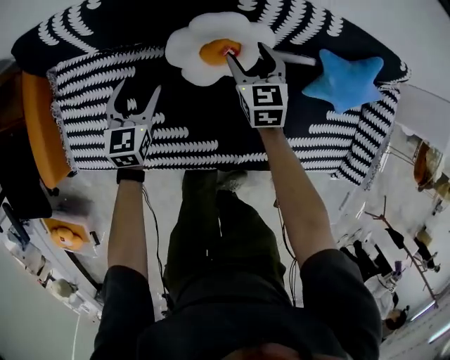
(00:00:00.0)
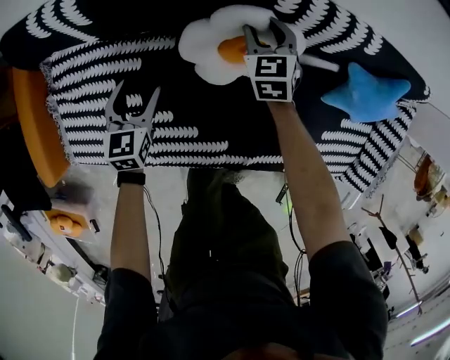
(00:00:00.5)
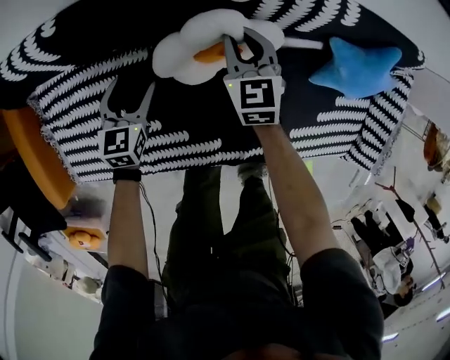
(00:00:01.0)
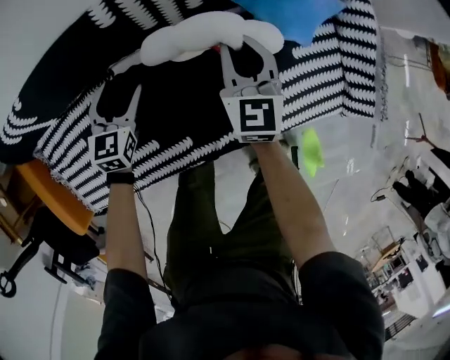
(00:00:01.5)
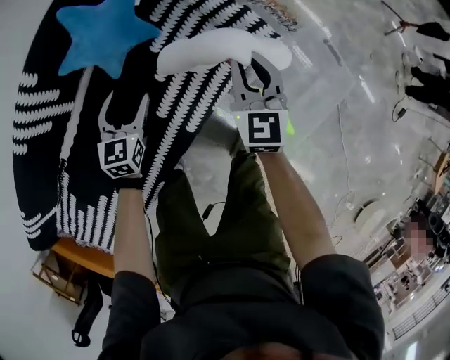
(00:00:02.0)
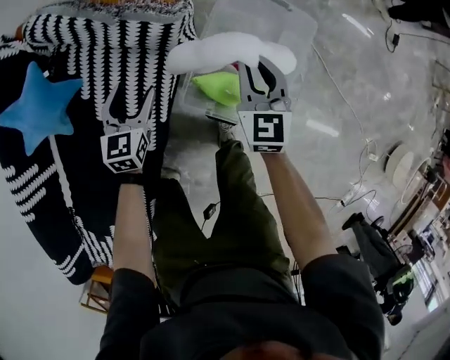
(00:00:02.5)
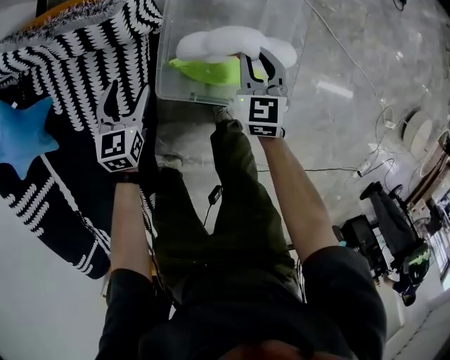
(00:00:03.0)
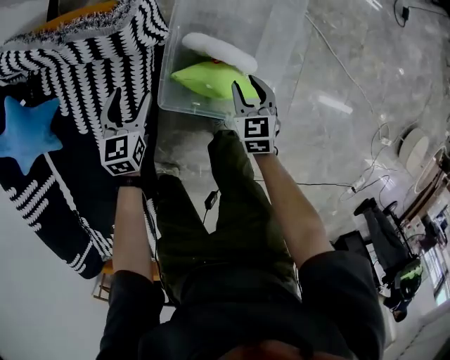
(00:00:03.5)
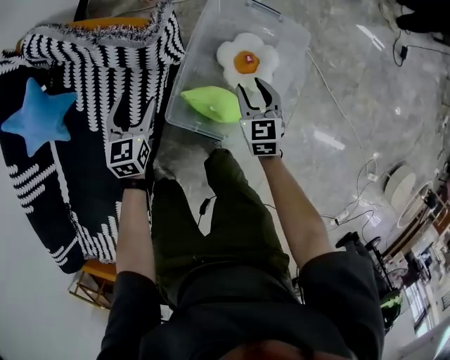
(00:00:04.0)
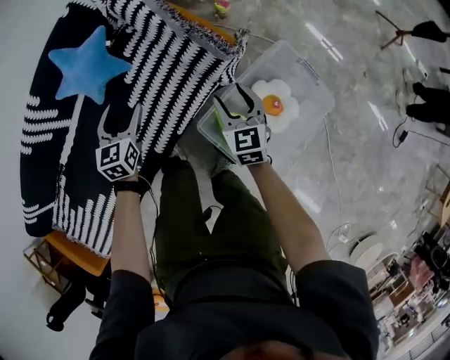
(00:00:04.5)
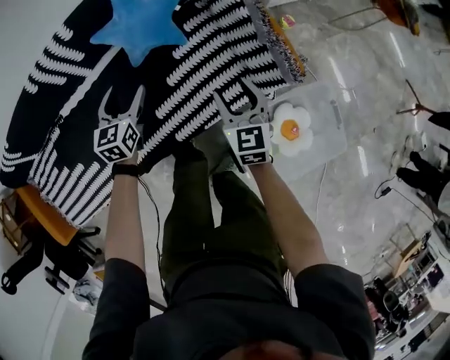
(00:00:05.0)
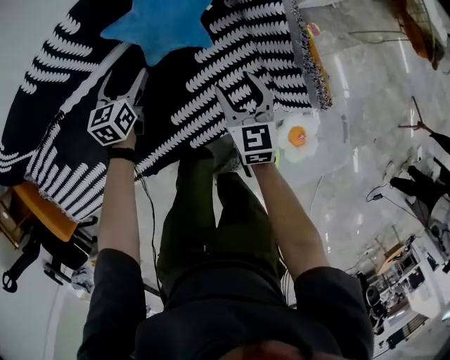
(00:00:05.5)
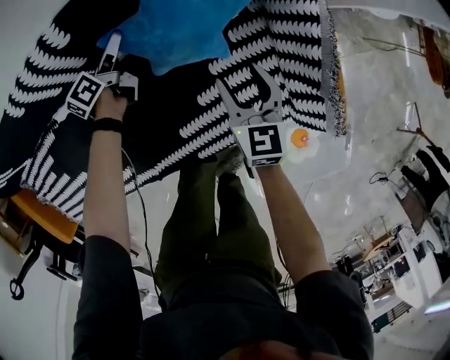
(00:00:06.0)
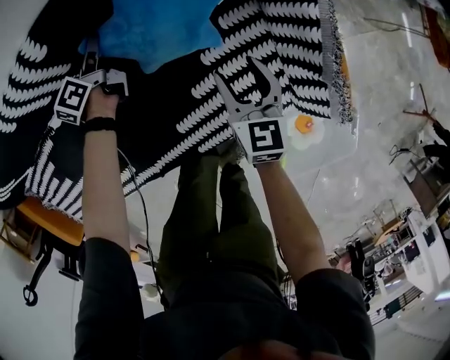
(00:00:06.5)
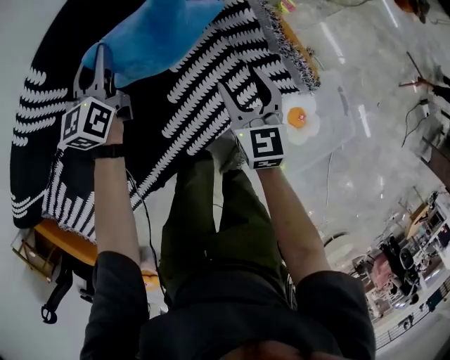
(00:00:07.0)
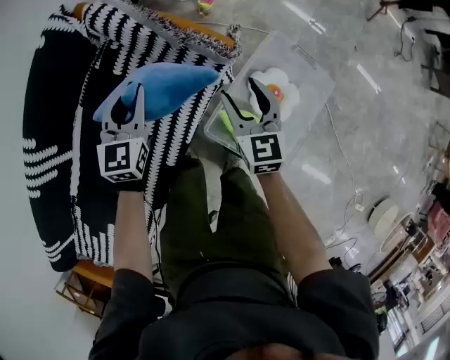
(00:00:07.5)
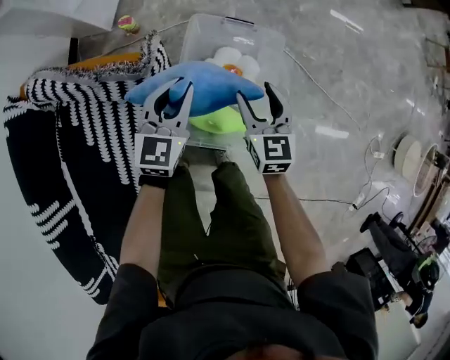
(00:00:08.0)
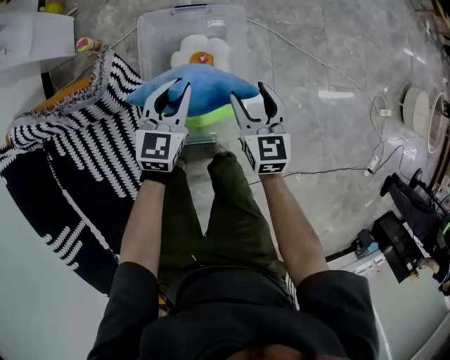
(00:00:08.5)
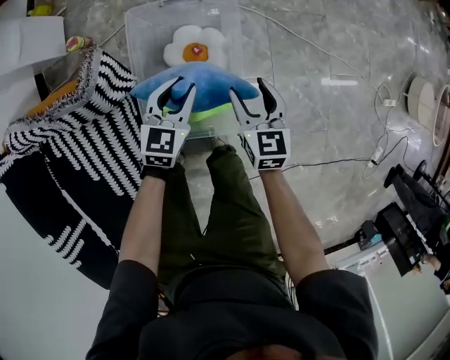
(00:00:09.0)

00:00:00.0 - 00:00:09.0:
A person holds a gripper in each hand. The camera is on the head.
00:00:00.0 - 00:00:02.0: The two grippers travel together, approximately 60 cm. The left gripper turns by roughly 50 degrees. Meanwhile the right gripper rotates approximately 60 degrees, and closes.
00:00:02.0 - 00:00:04.5: The right gripper reaches some 25 cm downward, then returns, and opens up. The left gripper goes downward and returns, approximately 15 cm each way.
00:00:04.5 - 00:00:07.0: Both grippers travel together forward and to the left, some 30 cm. The left gripper swivels approximately 30 degrees, and closes its fingers.
00:00:07.0 - 00:00:09.0: Both grippers are carried approximately 70 cm. The right gripper turns by about 60 degrees. Meanwhile the left gripper swivels approximately 90 degrees.

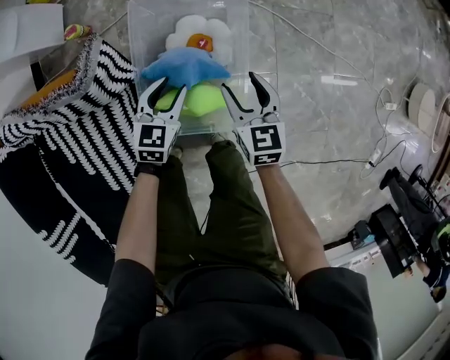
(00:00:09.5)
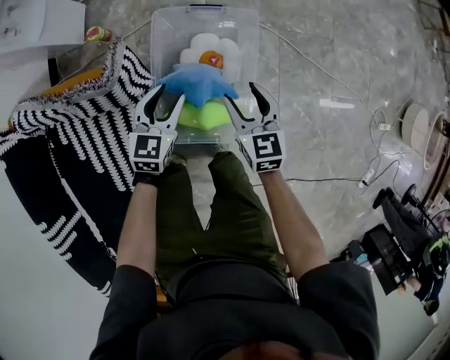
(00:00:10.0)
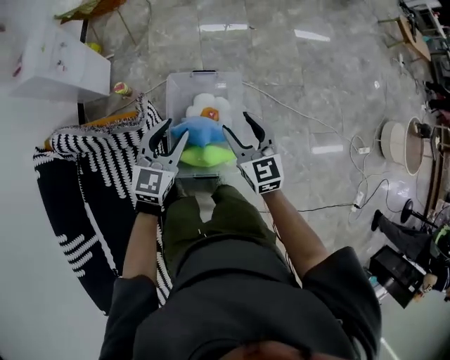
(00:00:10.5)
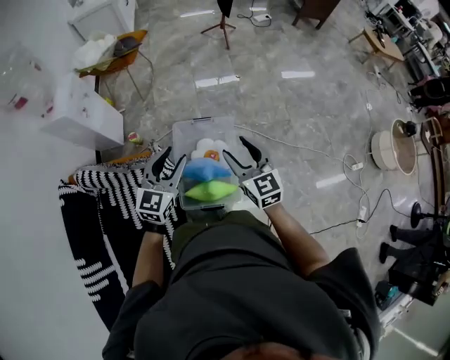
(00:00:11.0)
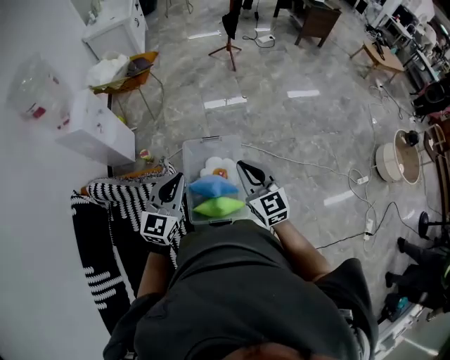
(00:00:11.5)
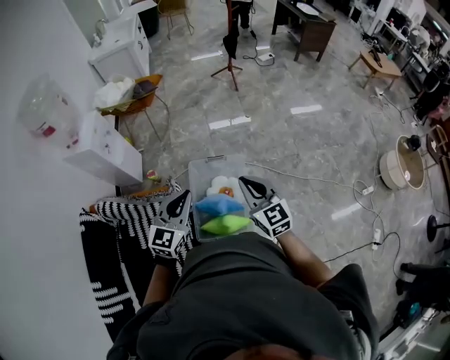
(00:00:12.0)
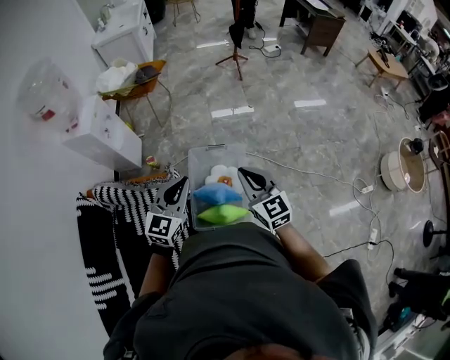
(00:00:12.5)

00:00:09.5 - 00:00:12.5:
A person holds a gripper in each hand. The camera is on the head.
00:00:09.5 - 00:00:11.0: Both grippers travel together upward, roughly 50 cm. The right gripper swivels some 30 degrees. The left gripper changes its angle by approximately 30 degrees.
00:00:11.0 - 00:00:12.5: Both grippers move upward, roughly 5 cm. The left gripper closes. The right gripper closes up.

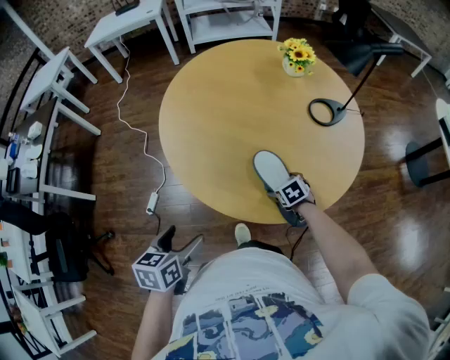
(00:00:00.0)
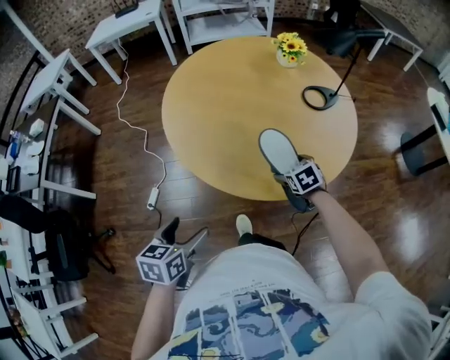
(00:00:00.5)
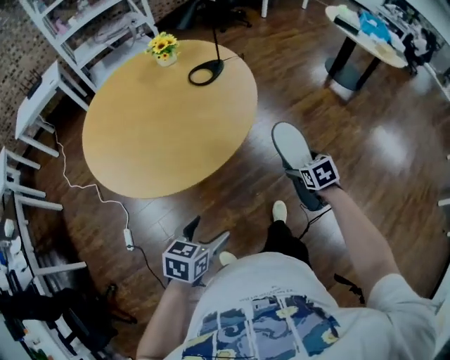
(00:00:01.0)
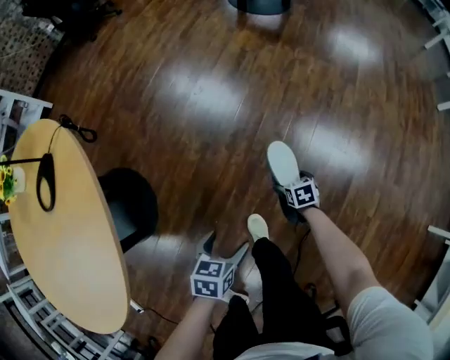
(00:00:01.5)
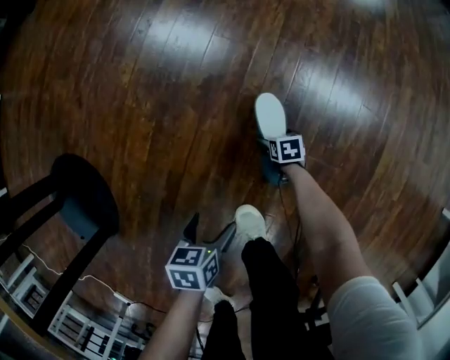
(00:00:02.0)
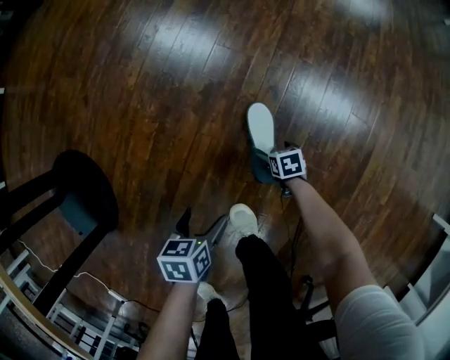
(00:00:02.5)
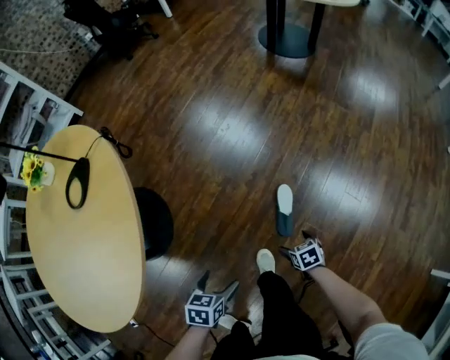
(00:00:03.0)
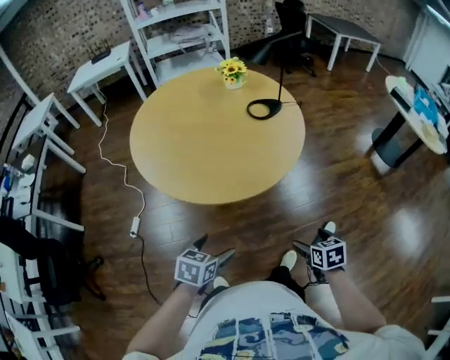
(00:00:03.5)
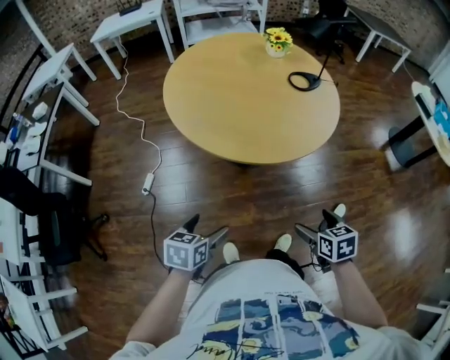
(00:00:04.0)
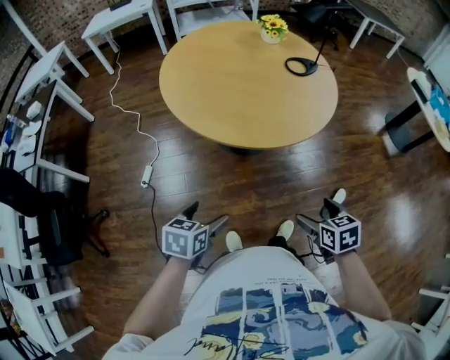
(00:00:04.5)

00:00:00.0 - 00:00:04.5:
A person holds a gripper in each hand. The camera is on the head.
00:00:00.0 - 00:00:02.0: Both grippers are carried roughly 1 m. The right gripper twists some 80 degrees clockwise, seen from behind; the left gripper swivels some 70 degrees.
00:00:02.0 - 00:00:04.5: The pair of grippers is taken some 90 cm. The right gripper is displaced upward by some 1 m, and rotates around the line of its fingers by roughly 60 degrees, counterclockwise from behind, while the left gripper turns by approximately 50 degrees.

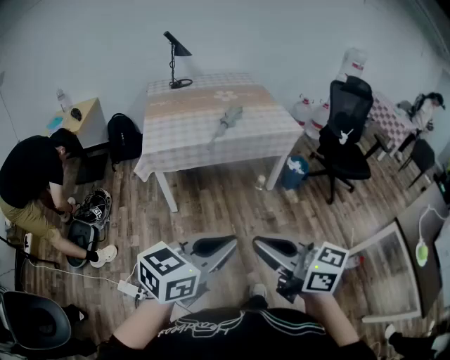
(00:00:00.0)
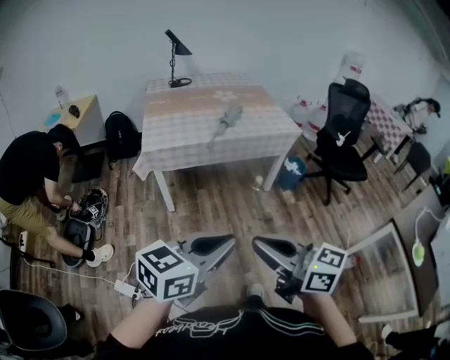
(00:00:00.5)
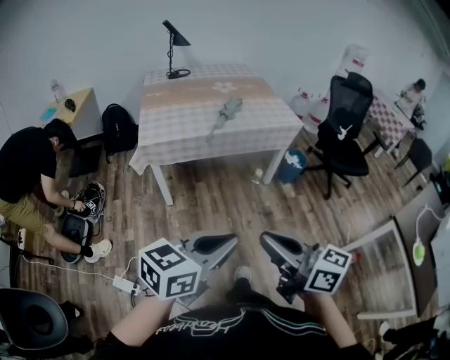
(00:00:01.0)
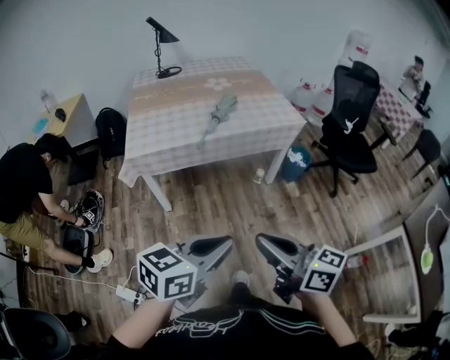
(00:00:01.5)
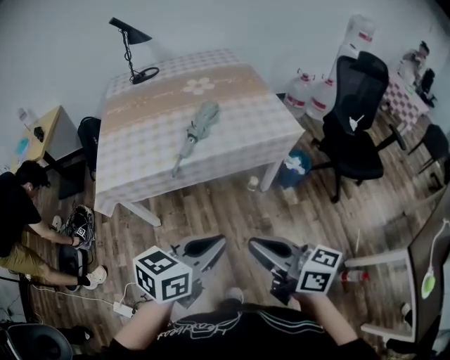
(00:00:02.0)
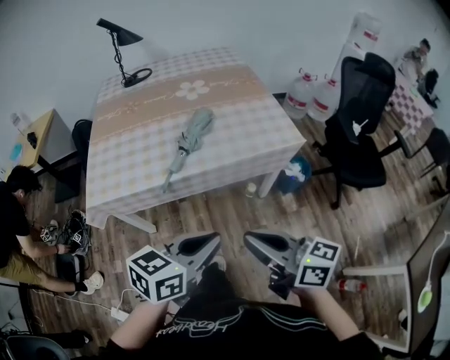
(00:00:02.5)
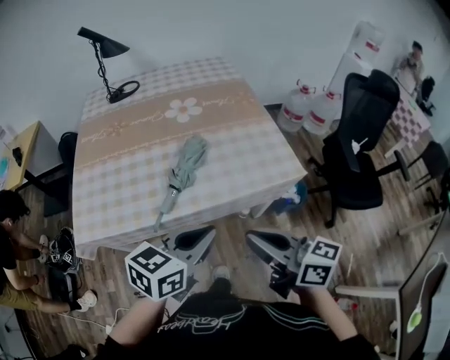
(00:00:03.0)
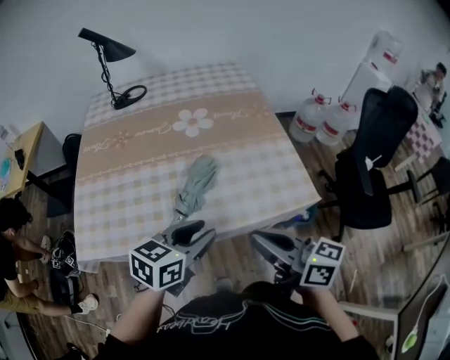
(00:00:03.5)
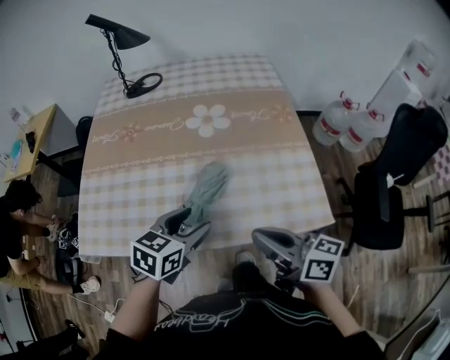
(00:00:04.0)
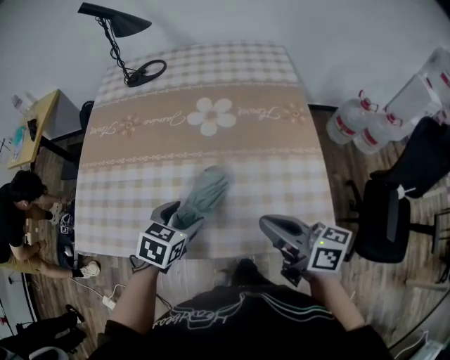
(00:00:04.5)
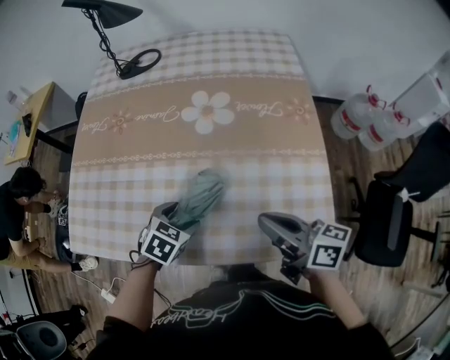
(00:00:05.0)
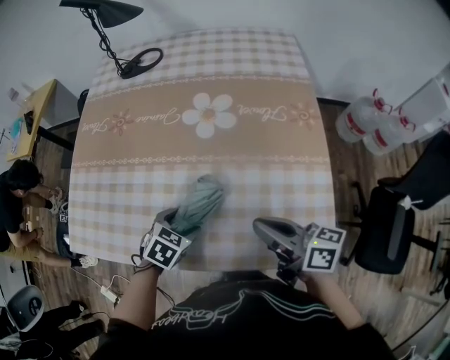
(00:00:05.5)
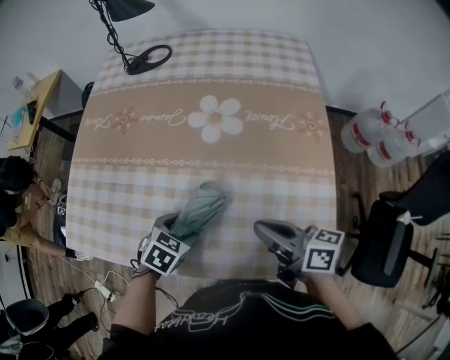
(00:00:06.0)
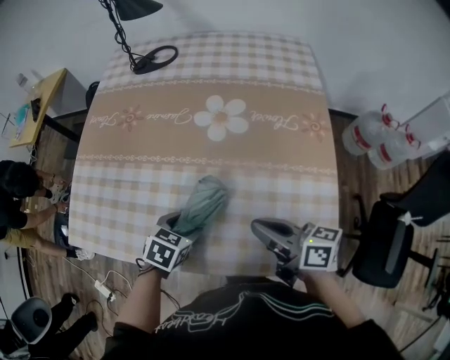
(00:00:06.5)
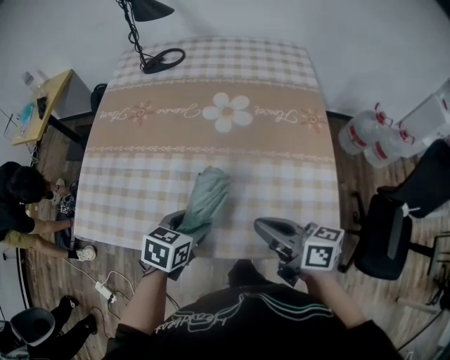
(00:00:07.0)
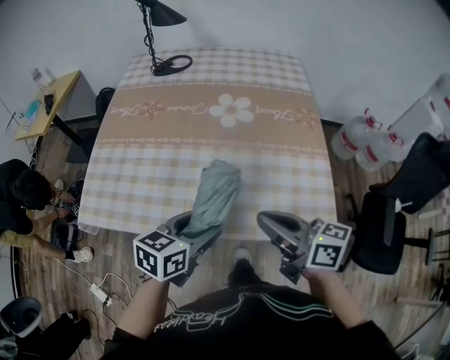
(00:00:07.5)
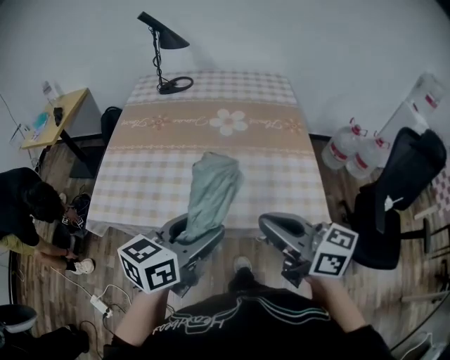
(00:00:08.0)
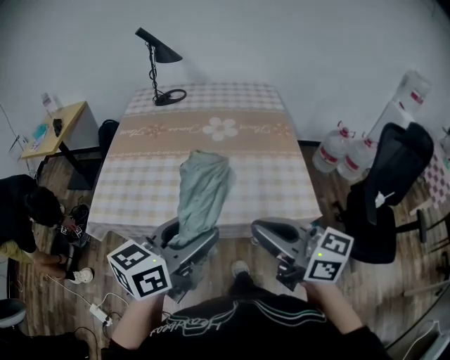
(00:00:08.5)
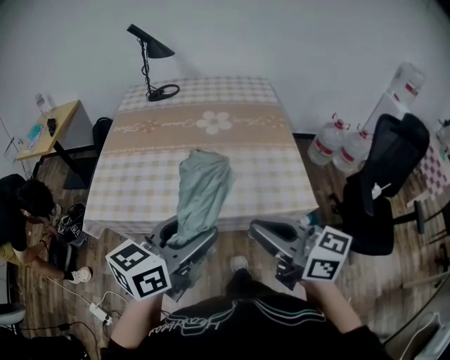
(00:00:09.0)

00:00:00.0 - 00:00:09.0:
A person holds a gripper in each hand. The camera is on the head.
00:00:00.0 - 00:00:02.0: The grippers both shift forward by about 35 cm.
00:00:02.0 - 00:00:04.5: The pair of grippers is taken forward, roughly 50 cm. The left gripper angles its fingers downward, by some 30 degrees, and opens its fingers.
00:00:04.5 - 00:00:07.0: The left gripper moves roughly 10 cm downward and comes back.
00:00:07.0 - 00:00:09.0: The right gripper travels backward and upward by about 30 cm, and swivels approximately 30 degrees. Meanwhile the left gripper shifts some 35 cm upward and backward, and angles its fingers upward, by some 40 degrees.
